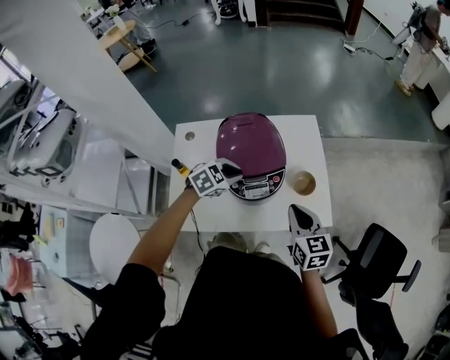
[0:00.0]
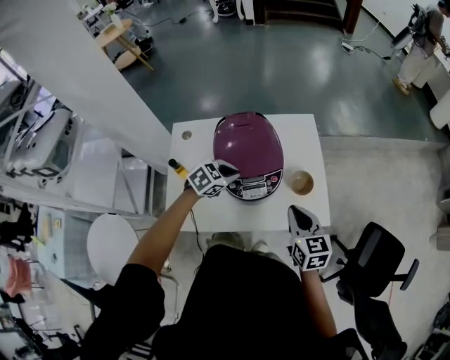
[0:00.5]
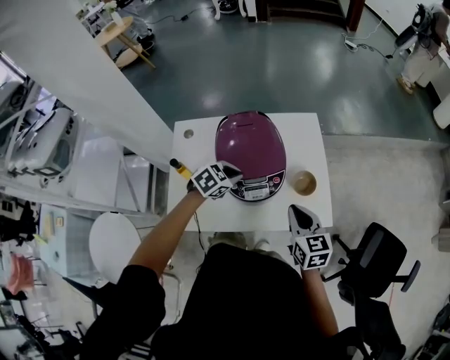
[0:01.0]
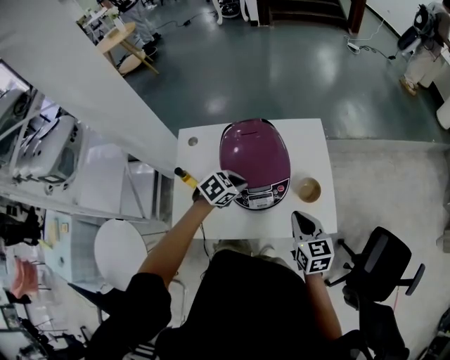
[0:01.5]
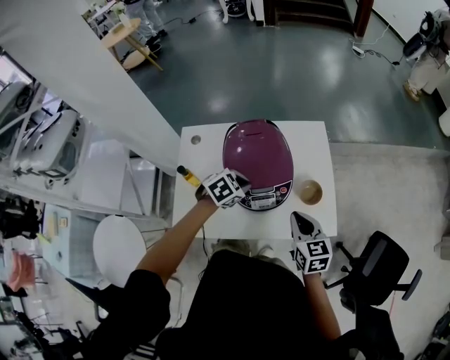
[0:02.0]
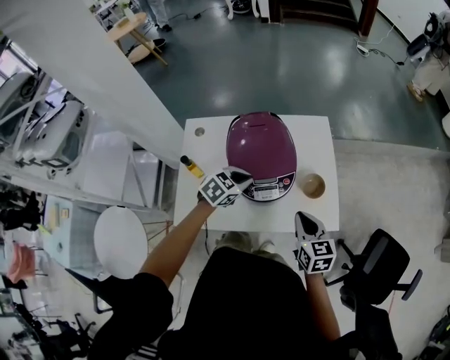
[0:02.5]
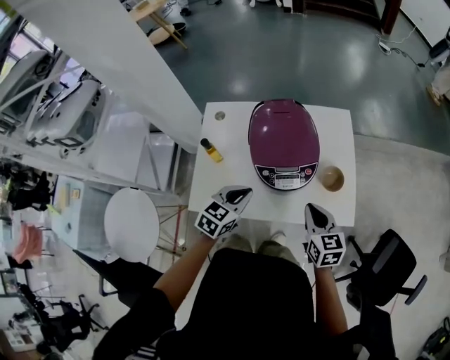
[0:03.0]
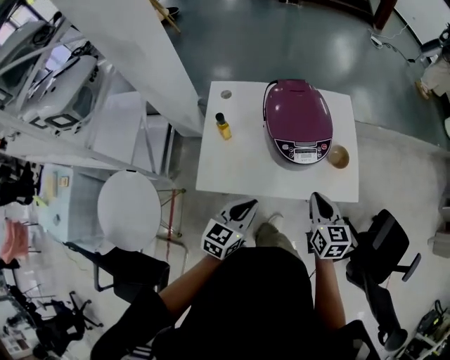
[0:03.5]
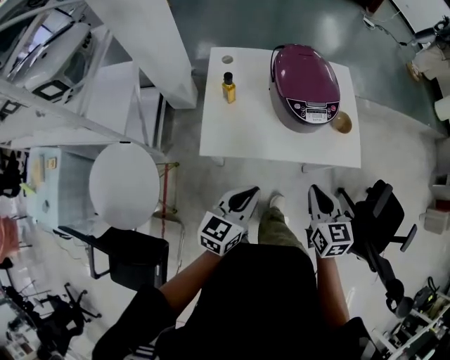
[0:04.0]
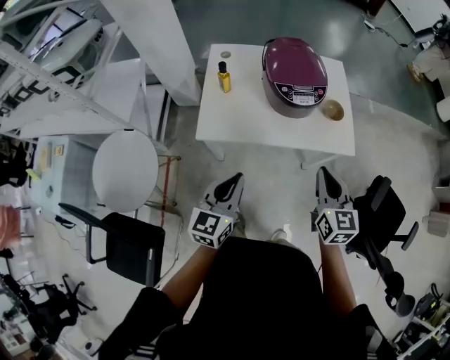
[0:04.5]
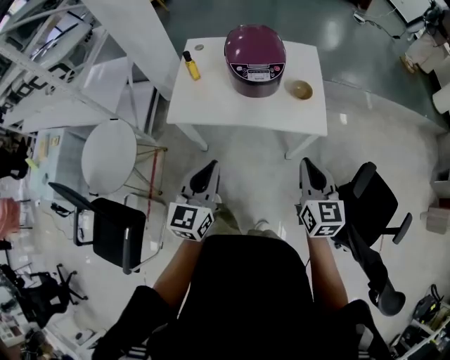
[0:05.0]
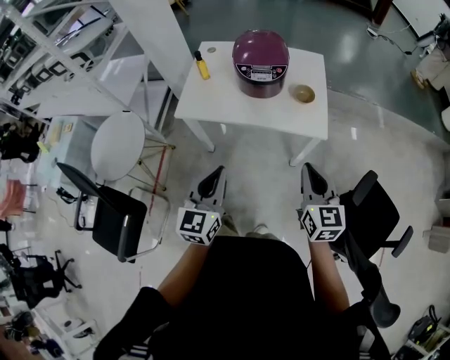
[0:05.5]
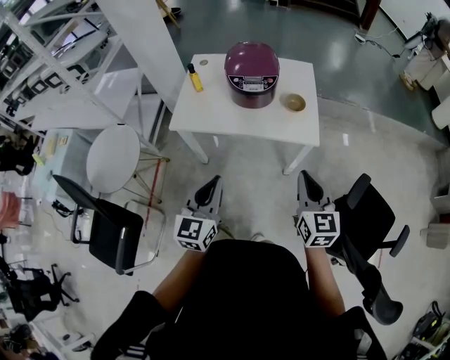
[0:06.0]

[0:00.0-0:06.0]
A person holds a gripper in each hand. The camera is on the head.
0:00.0 to 0:02.0: The grippers stay close to where they were, moving slightly.
0:02.0 to 0:04.0: The left gripper travels backward by about 35 cm, and points its fingers approximately 40 degrees further upward. The right gripper travels backward by approximately 25 cm.
0:04.0 to 0:06.0: The right gripper shifts roughly 25 cm to the right and backward, while the left gripper heads backward, to the right and upward, covering approximately 25 cm, and rotates approximately 30 degrees.

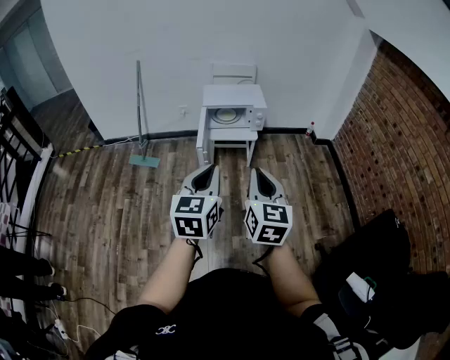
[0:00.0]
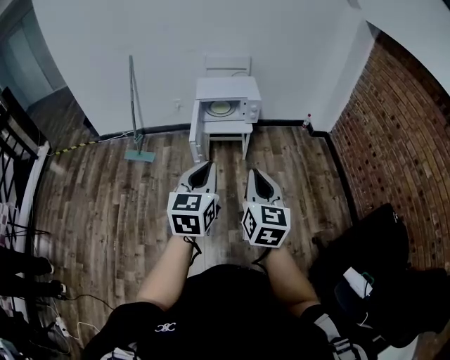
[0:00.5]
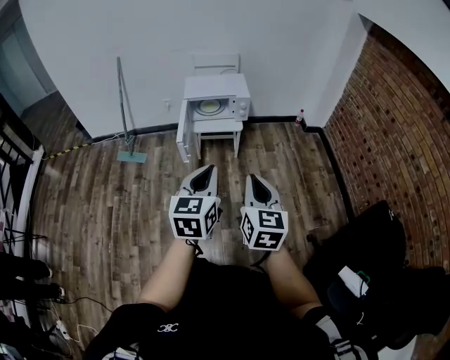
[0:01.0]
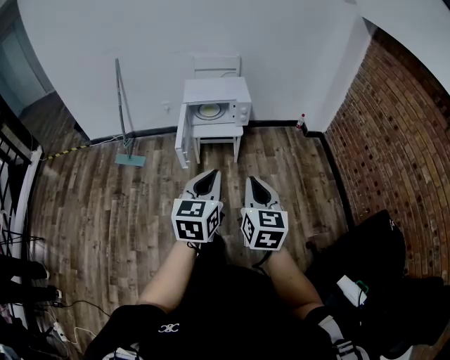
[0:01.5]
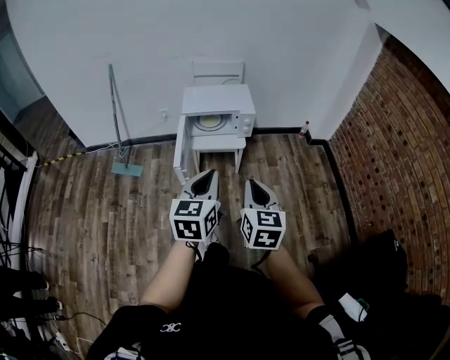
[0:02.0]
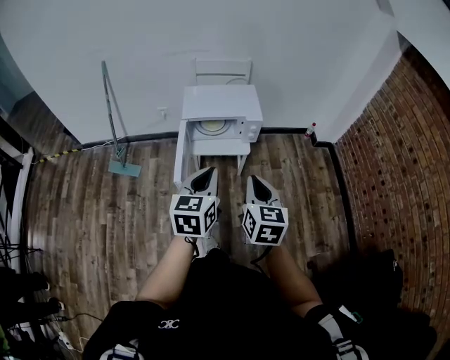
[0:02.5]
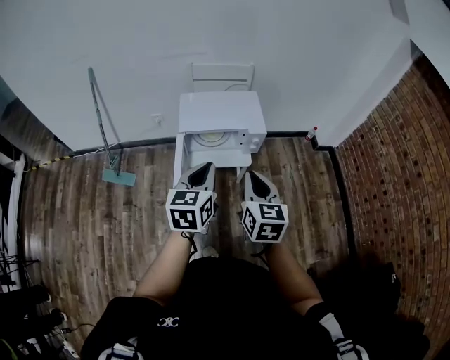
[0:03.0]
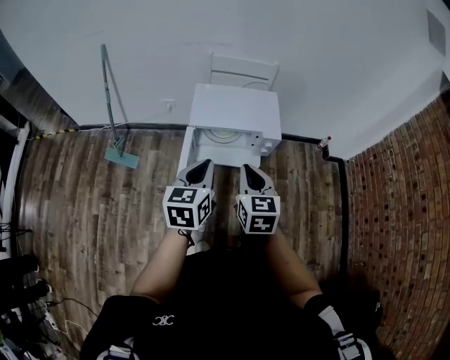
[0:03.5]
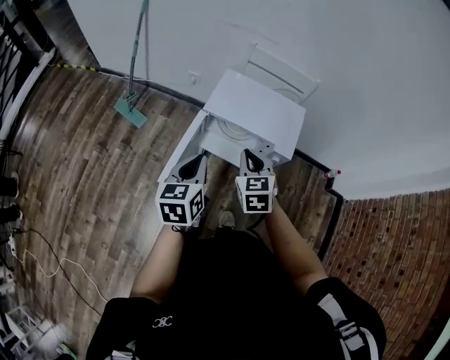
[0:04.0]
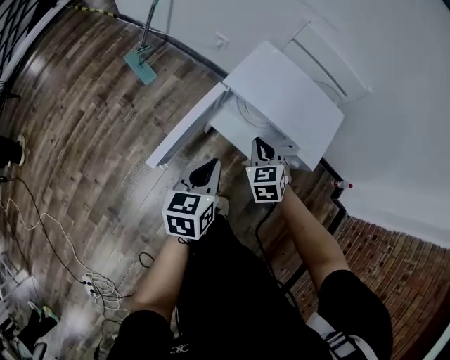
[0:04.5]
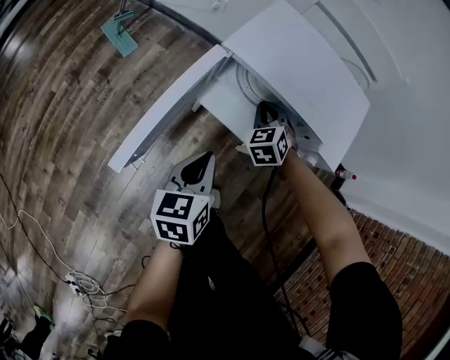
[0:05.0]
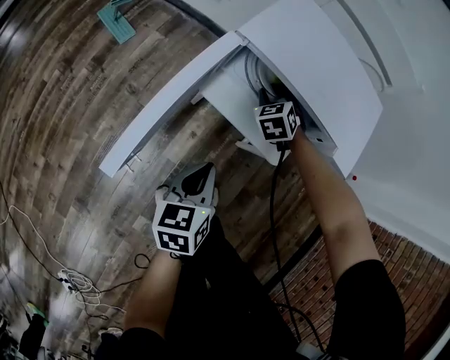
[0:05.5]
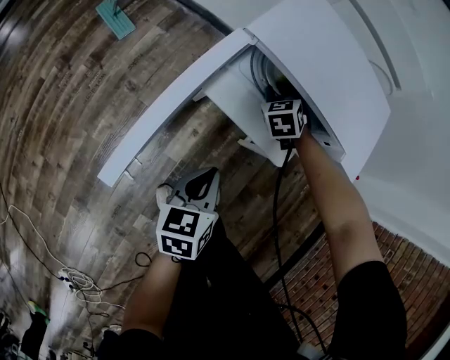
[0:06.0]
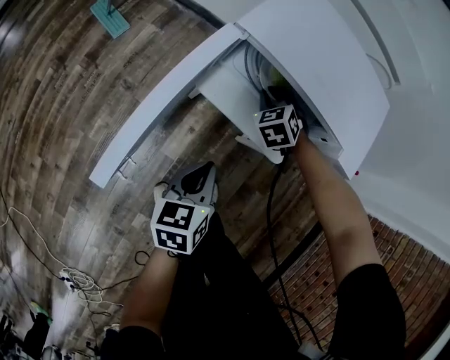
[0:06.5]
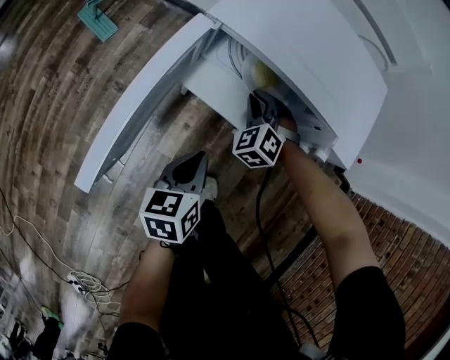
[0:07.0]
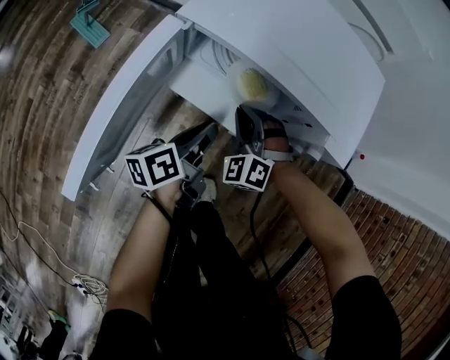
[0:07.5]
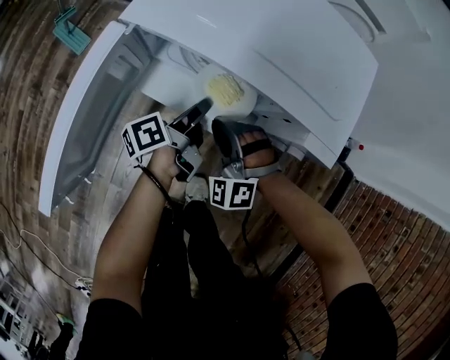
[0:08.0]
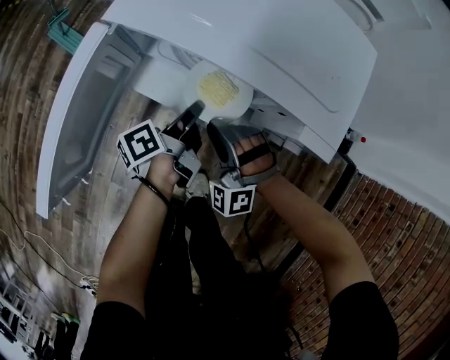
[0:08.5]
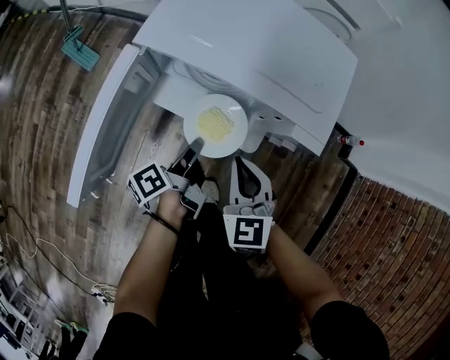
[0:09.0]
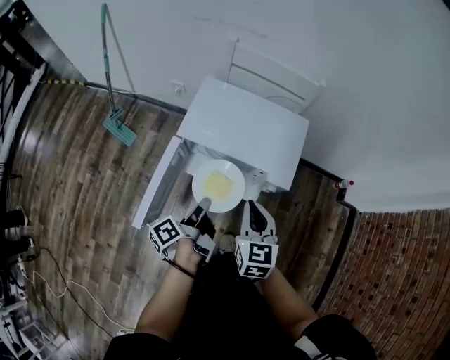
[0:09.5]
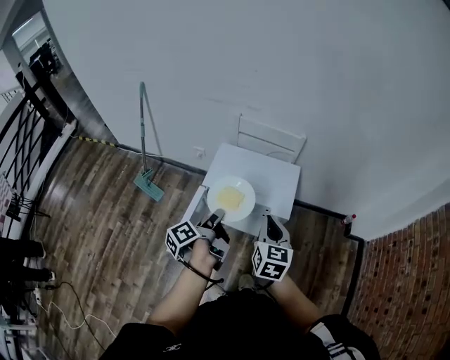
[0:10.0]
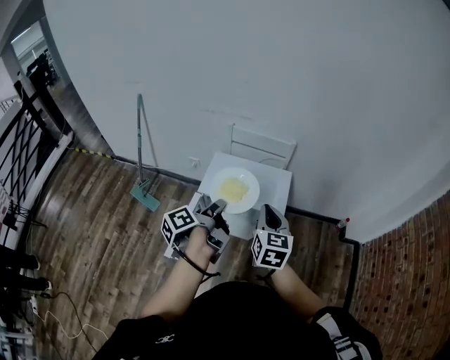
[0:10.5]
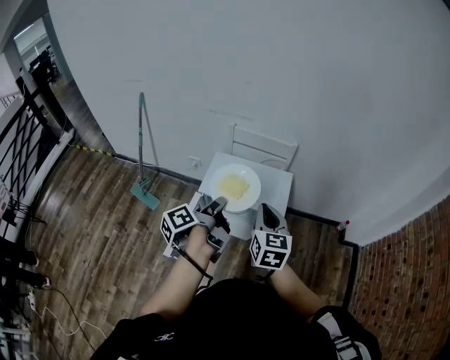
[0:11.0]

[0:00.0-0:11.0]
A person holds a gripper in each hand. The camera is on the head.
0:00.0 to 0:02.0: The right gripper heads forward and downward, covering about 20 cm, while the left gripper shifts about 20 cm forward.
0:02.0 to 0:03.5: Both grippers travel together forward, some 30 cm.
0:03.5 to 0:05.5: The left gripper heads downward, covering approximately 35 cm, and swivels about 40 degrees, while the right gripper shifts roughly 50 cm downward and forward, rolls counterclockwise, seen from behind, by some 50 degrees, and opens up.
0:05.5 to 0:07.5: The left gripper is displaced forward and downward by approximately 15 cm, and turns by approximately 30 degrees. Meanwhile the right gripper travels backward by about 10 cm, and changes its angle by roughly 30 degrees.
0:07.5 to 0:09.0: The right gripper moves upward, backward and to the right, some 15 cm, and rotates around the line of its fingers by about 50 degrees, clockwise from behind. Meanwhile the left gripper travels forward and back again, roughly 5 cm each way, and changes its angle by some 30 degrees.
0:09.0 to 0:11.0: Both grippers move upward, roughly 40 cm. The right gripper changes its angle by roughly 30 degrees.

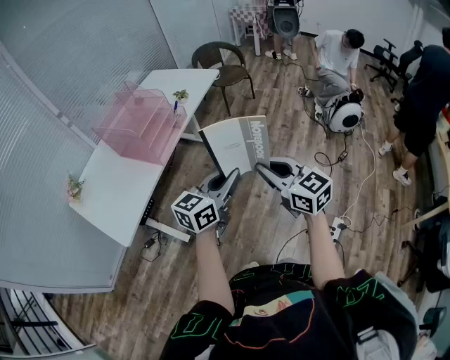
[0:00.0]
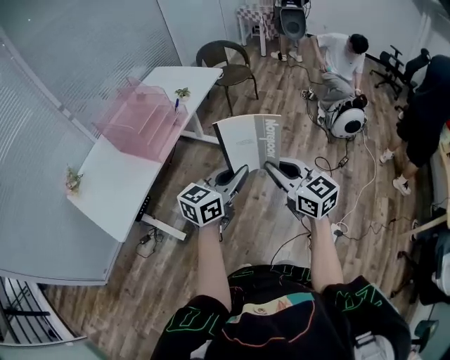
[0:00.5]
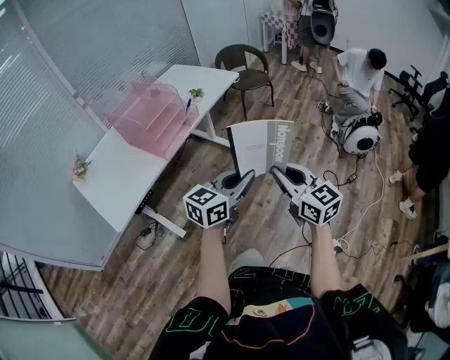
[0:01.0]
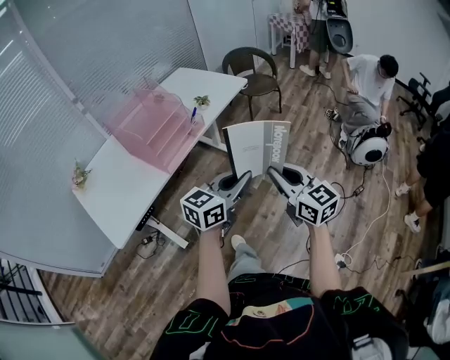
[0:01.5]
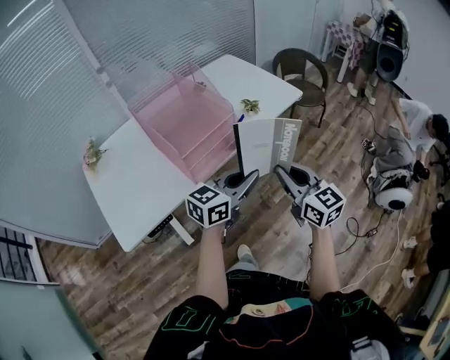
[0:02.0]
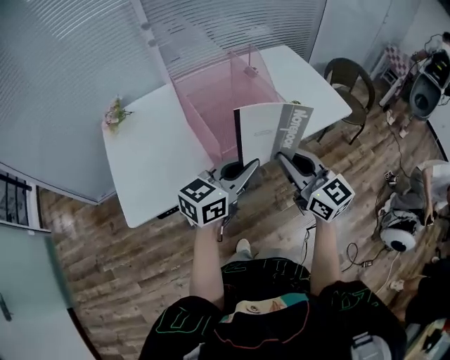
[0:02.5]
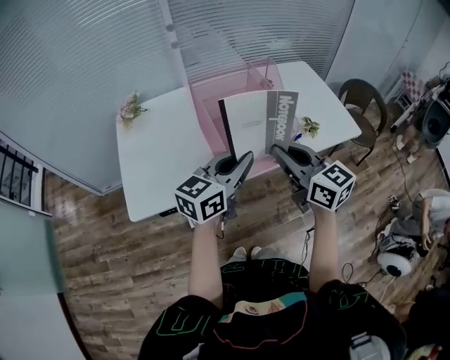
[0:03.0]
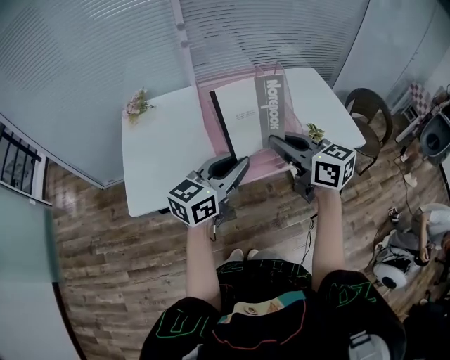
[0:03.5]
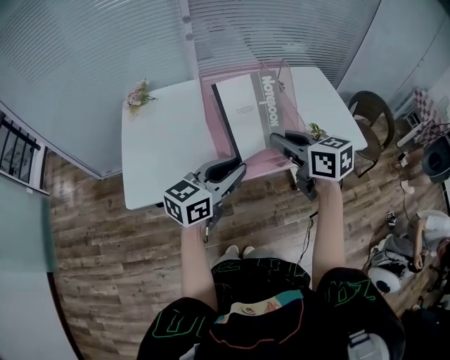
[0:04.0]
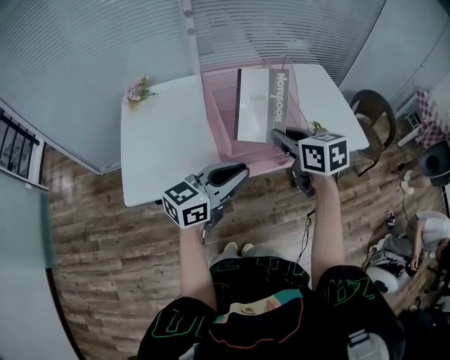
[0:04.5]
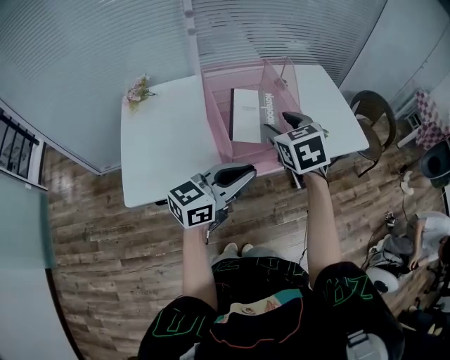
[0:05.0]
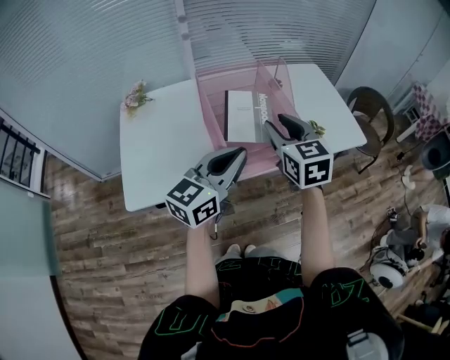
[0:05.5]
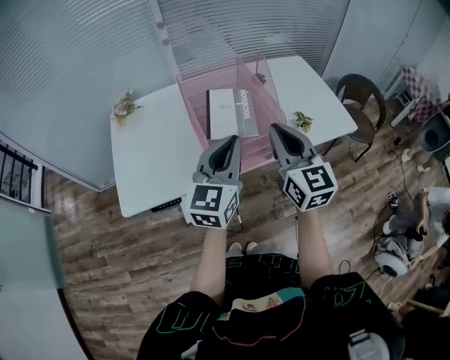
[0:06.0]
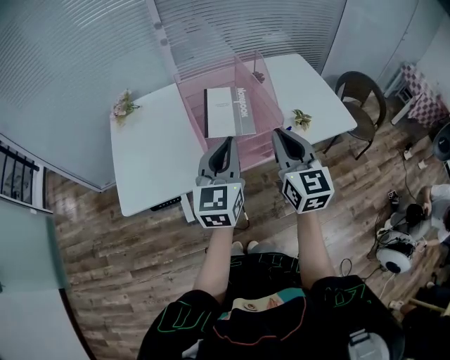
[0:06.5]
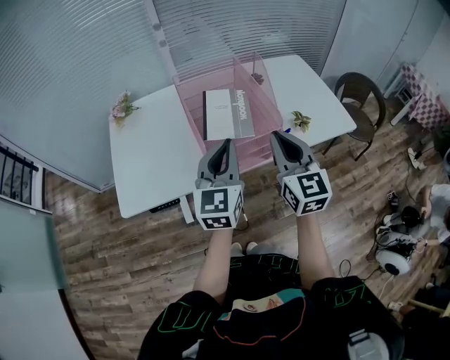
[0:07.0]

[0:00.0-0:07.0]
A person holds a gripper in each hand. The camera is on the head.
0:00.0 to 0:02.0: The two grippers go roughly 30 cm forward and to the left.
0:02.0 to 0:03.5: The right gripper moves some 25 cm, and swivels roughly 40 degrees. Meanwhile the left gripper moves roughly 20 cm, and swivels some 30 degrees.
0:03.5 to 0:05.0: The right gripper moves forward, some 5 cm, turns by approximately 40 degrees, and opens up.
0:05.0 to 0:07.0: The right gripper moves to the right and backward, roughly 10 cm, points its fingers approximately 30 degrees further upward, and closes up; the left gripper shifts by about 5 cm, and rotates about 40 degrees.

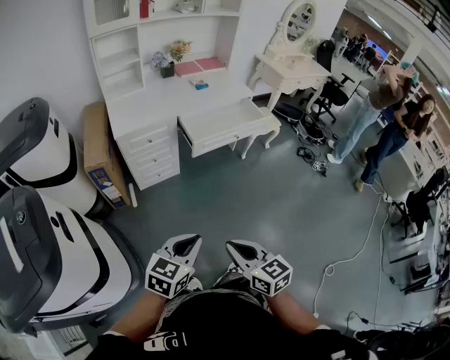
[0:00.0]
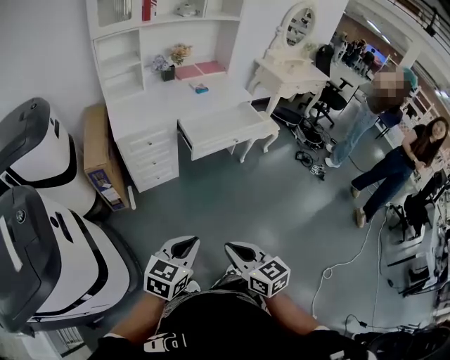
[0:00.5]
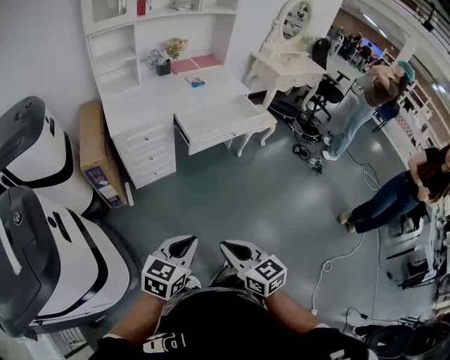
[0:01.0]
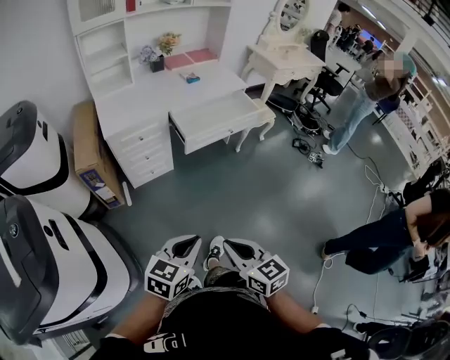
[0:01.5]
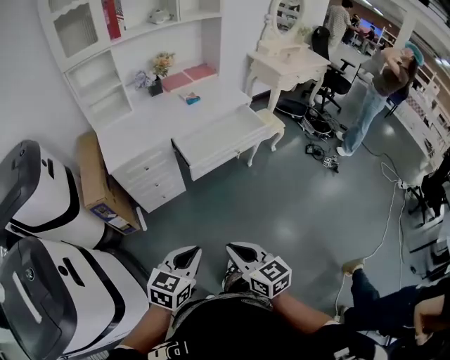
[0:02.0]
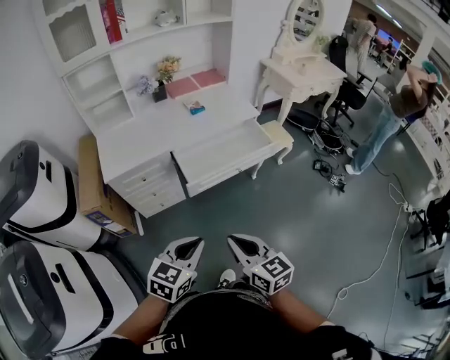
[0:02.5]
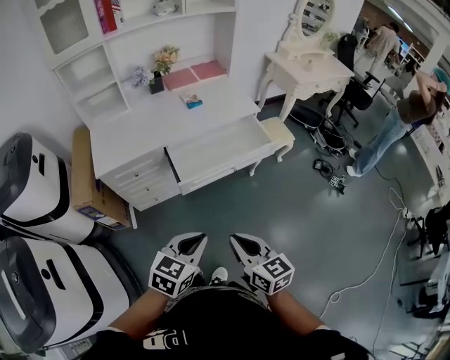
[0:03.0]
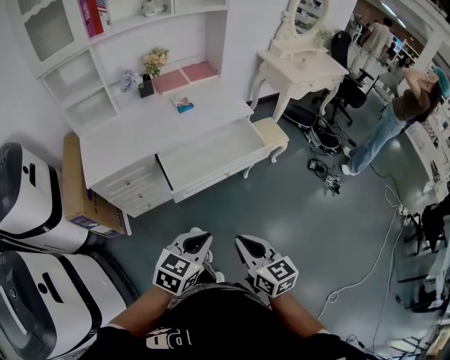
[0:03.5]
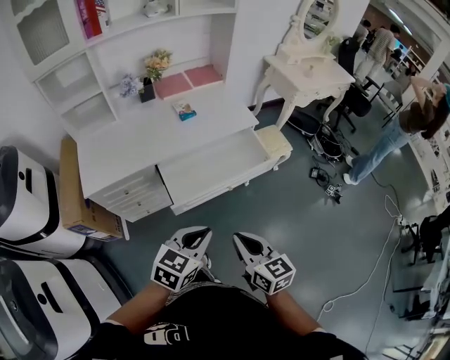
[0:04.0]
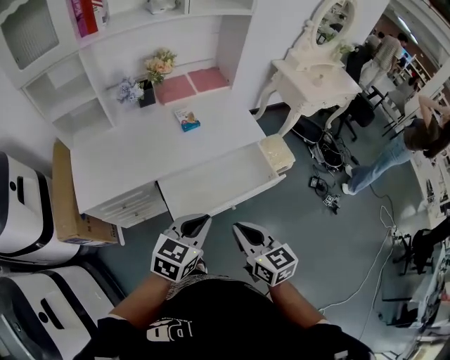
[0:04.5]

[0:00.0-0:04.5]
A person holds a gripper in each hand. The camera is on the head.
0:00.0 to 0:02.0: The grippers both shift forward by approximately 10 cm.
0:02.0 to 0:04.5: The two grippers travel together, forward, approximately 40 cm.
